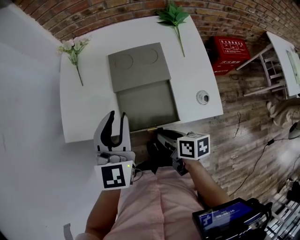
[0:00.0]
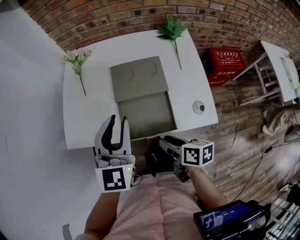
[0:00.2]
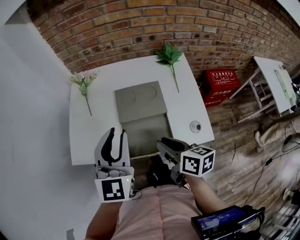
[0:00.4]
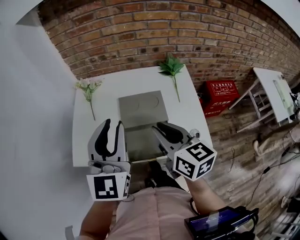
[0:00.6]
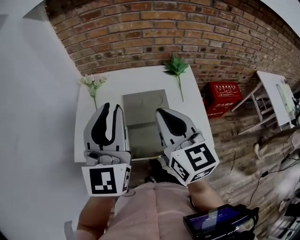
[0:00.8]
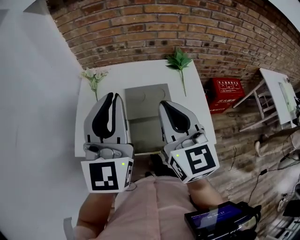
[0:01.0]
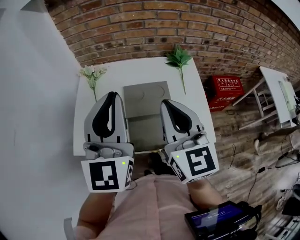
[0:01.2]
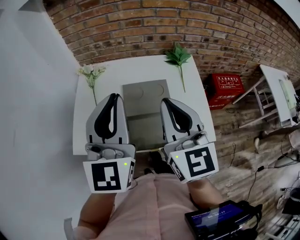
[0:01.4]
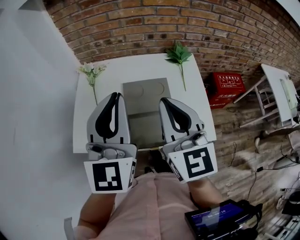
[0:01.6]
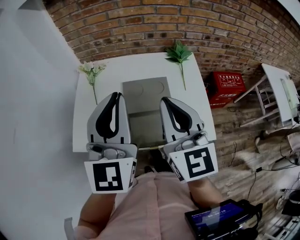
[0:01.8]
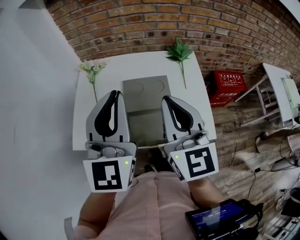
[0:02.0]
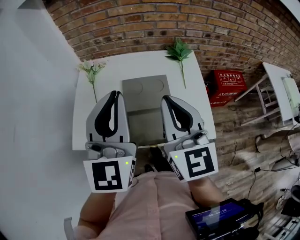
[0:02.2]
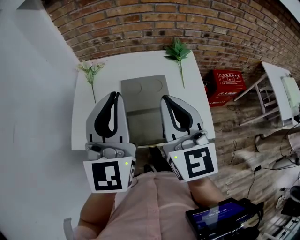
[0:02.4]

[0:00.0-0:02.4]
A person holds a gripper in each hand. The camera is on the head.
0:00.0 to 0:01.2: The left gripper is displaced upward by approximately 20 cm, changes its angle by about 20 degrees, and closes, while the right gripper heads upward, covering approximately 35 cm, tilts its fingers about 40 degrees upward, and closes up.
0:01.2 to 0:02.4: There are only small adjustments of the grippers.

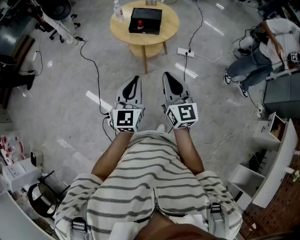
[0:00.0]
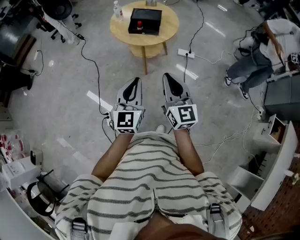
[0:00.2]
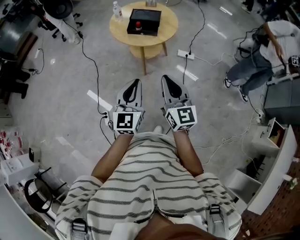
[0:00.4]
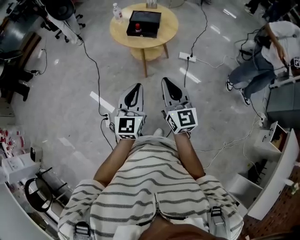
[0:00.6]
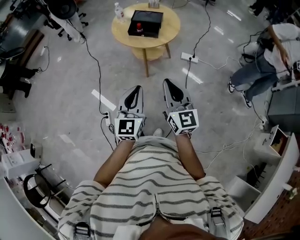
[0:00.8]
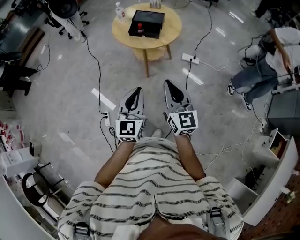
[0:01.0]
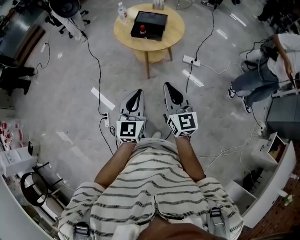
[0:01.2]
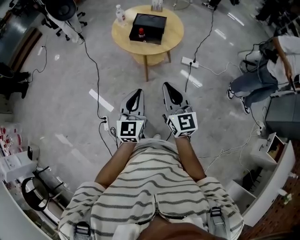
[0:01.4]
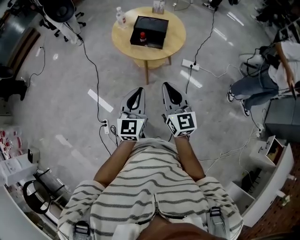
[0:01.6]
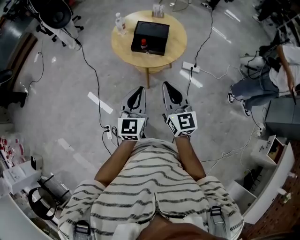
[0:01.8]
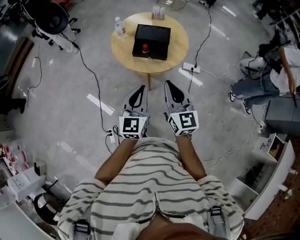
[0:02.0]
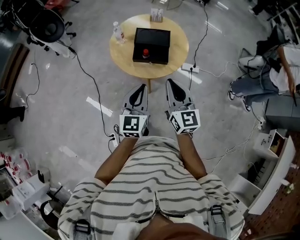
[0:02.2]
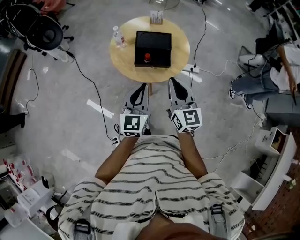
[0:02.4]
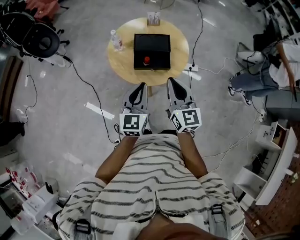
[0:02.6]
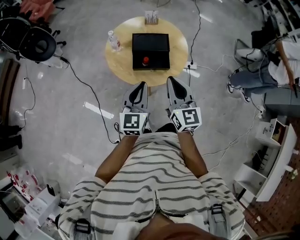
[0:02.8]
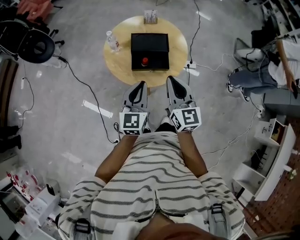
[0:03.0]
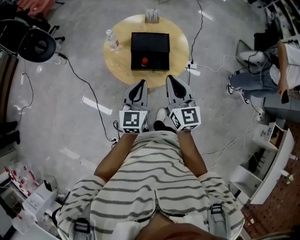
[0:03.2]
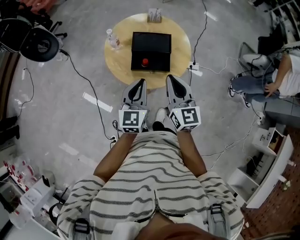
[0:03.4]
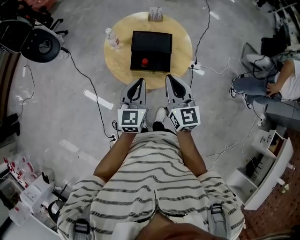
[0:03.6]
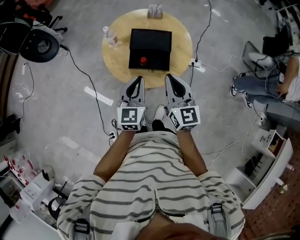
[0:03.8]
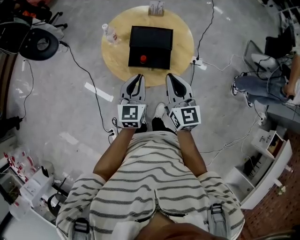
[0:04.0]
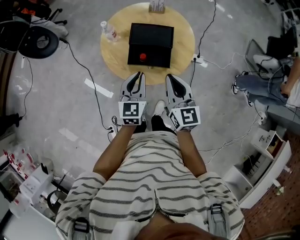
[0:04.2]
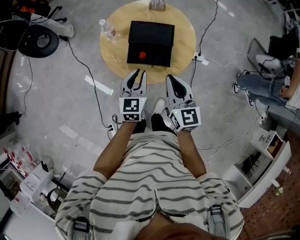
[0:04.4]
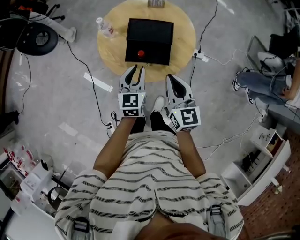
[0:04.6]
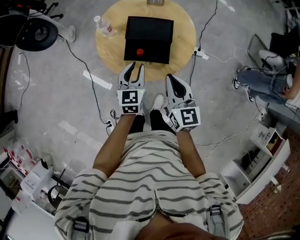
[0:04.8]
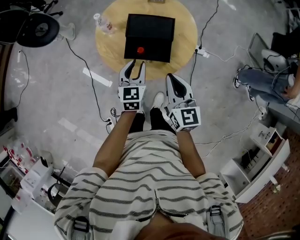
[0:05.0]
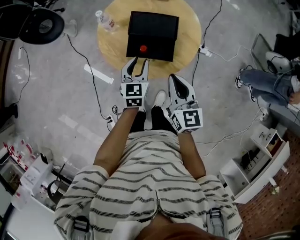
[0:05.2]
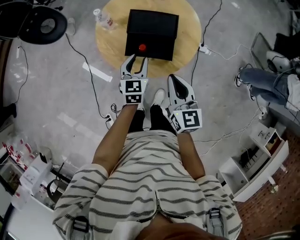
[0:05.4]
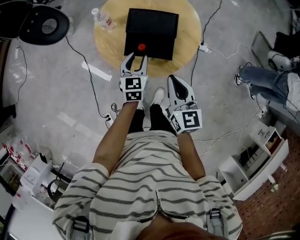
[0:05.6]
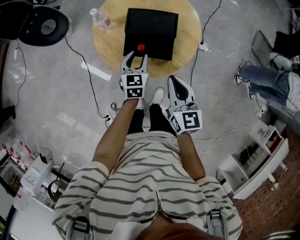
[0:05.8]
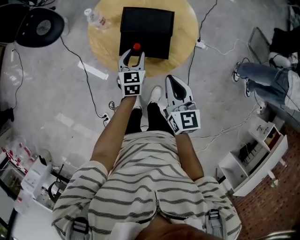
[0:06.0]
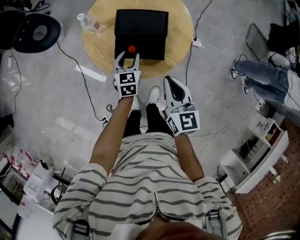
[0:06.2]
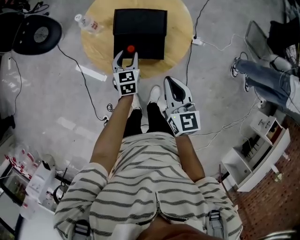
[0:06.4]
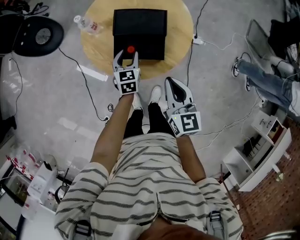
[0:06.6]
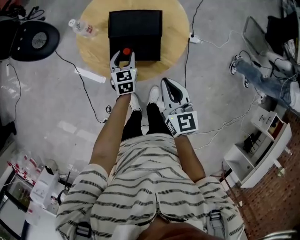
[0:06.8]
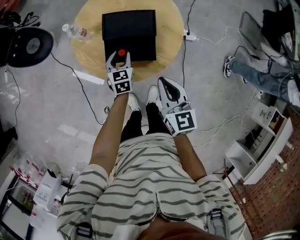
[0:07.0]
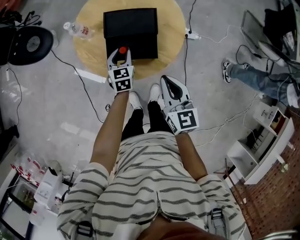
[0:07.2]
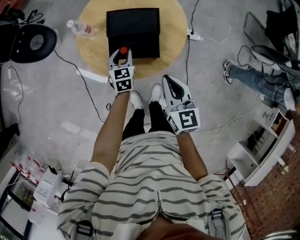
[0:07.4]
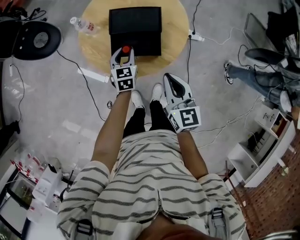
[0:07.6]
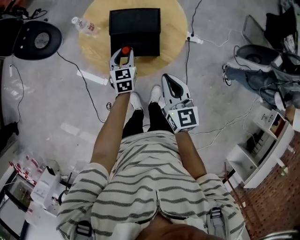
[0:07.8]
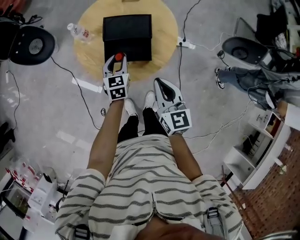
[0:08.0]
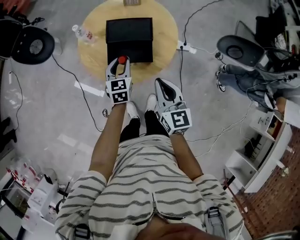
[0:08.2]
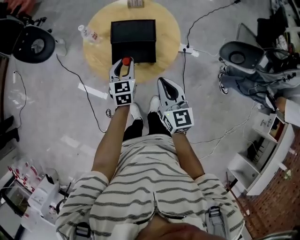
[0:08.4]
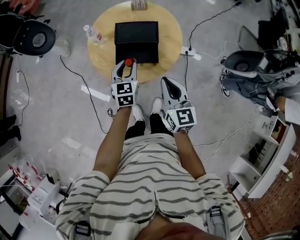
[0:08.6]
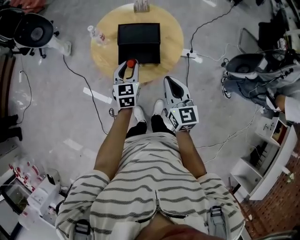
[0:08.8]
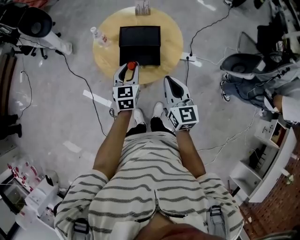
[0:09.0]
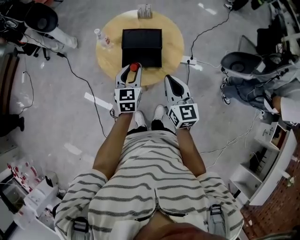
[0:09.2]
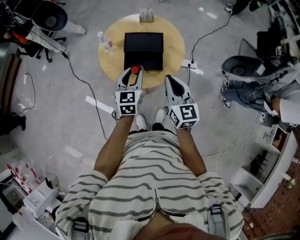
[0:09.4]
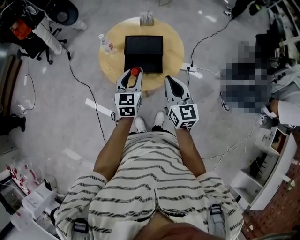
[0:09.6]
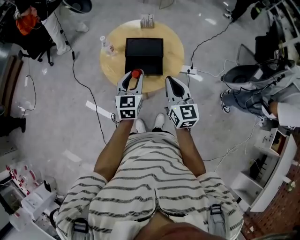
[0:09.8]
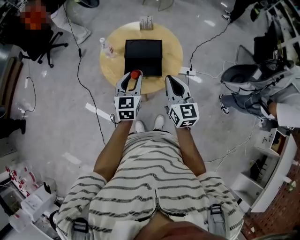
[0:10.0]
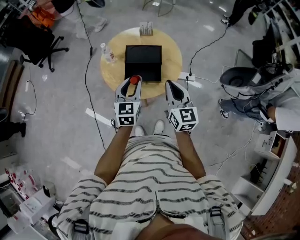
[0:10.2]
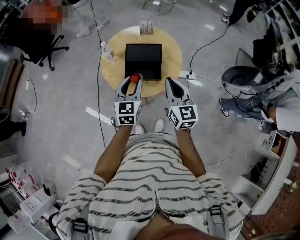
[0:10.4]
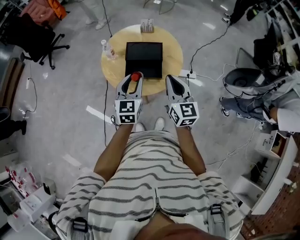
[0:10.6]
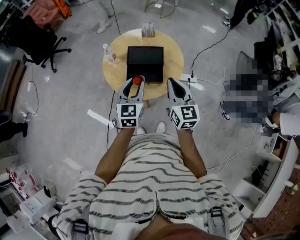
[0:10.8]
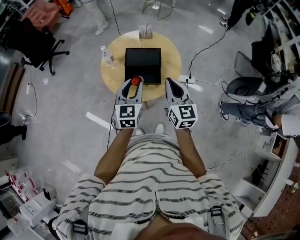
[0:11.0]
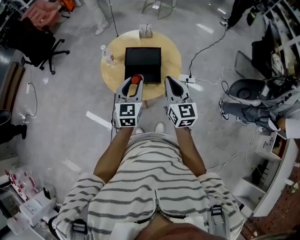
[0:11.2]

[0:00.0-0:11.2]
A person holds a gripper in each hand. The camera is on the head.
0:00.0 to 0:01.6: The right gripper is displaced forward by about 10 cm. The left gripper moves forward and to the right, approximately 10 cm.
0:01.6 to 0:03.2: Both grippers travel together forward, roughly 25 cm.
0:03.2 to 0:04.8: The right gripper heads downward, covering roughly 10 cm. The left gripper travels downward and forward by some 15 cm.
0:04.8 to 0:06.4: The left gripper moves downward and forward, approximately 15 cm.
0:06.4 to 0:08.0: The grippers move only a little.
0:08.0 to 0:09.6: The left gripper heads upward and backward, covering roughly 15 cm, while the right gripper travels upward by roughly 10 cm.
0:09.6 to 0:11.2: The left gripper shifts by some 5 cm.

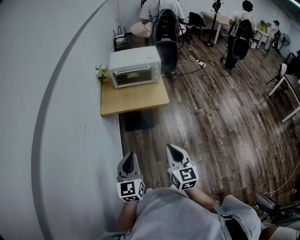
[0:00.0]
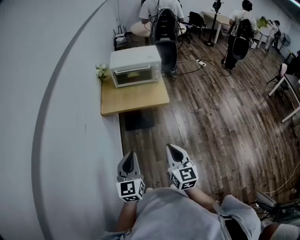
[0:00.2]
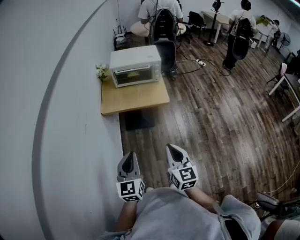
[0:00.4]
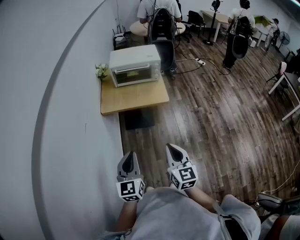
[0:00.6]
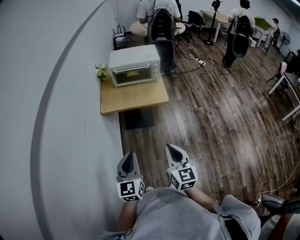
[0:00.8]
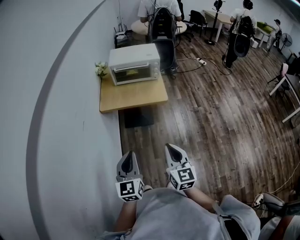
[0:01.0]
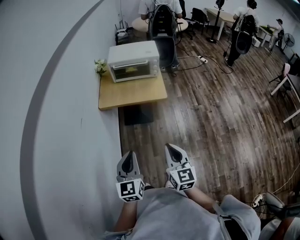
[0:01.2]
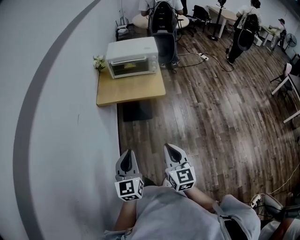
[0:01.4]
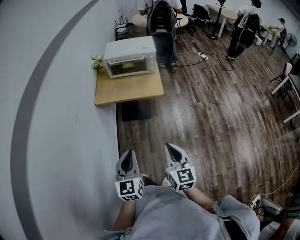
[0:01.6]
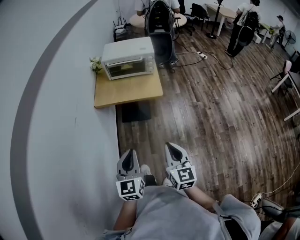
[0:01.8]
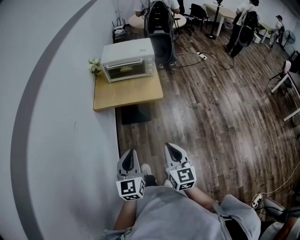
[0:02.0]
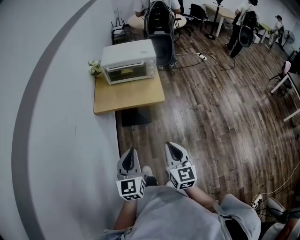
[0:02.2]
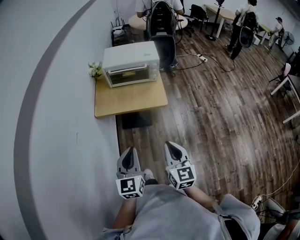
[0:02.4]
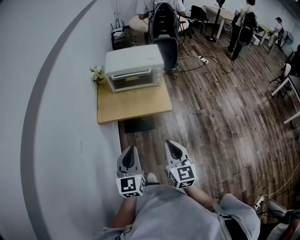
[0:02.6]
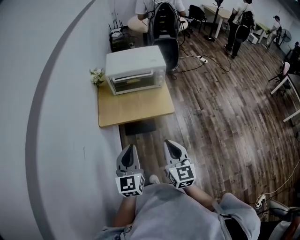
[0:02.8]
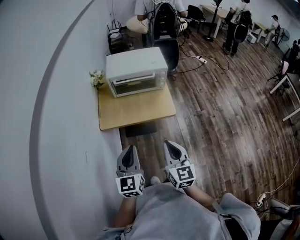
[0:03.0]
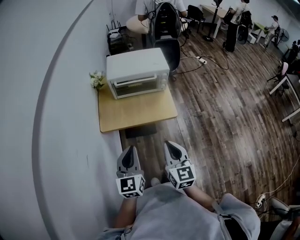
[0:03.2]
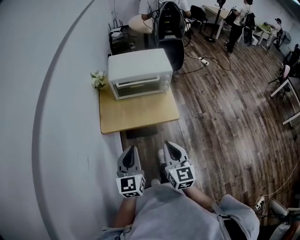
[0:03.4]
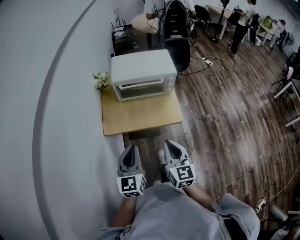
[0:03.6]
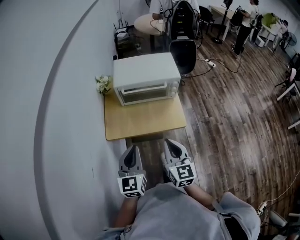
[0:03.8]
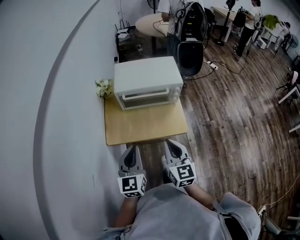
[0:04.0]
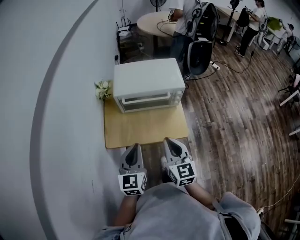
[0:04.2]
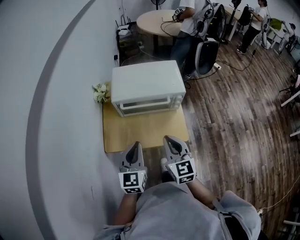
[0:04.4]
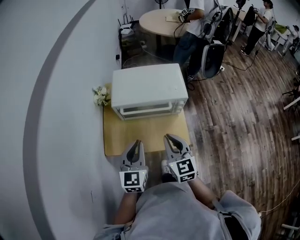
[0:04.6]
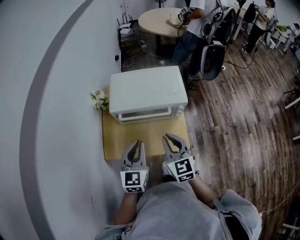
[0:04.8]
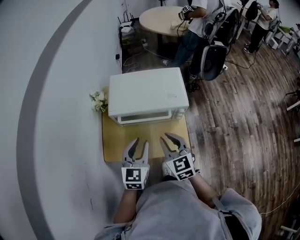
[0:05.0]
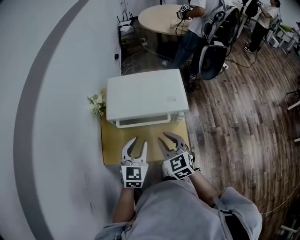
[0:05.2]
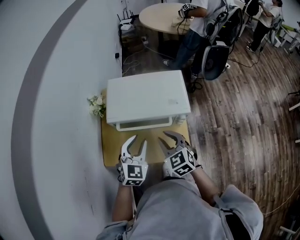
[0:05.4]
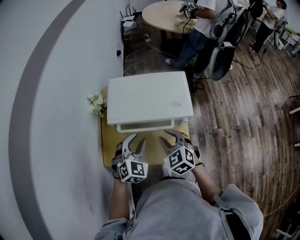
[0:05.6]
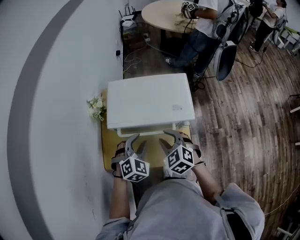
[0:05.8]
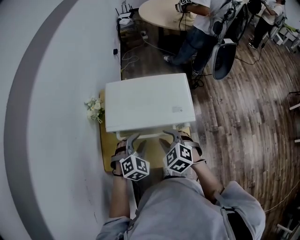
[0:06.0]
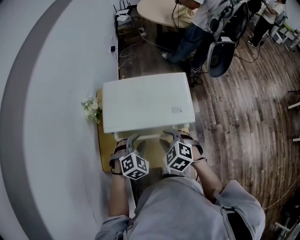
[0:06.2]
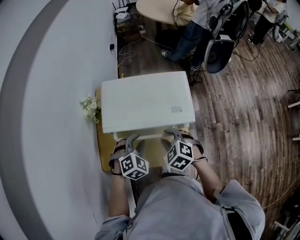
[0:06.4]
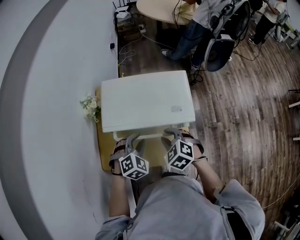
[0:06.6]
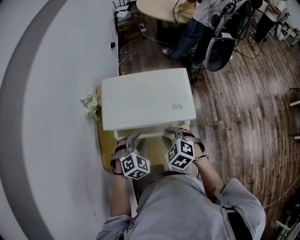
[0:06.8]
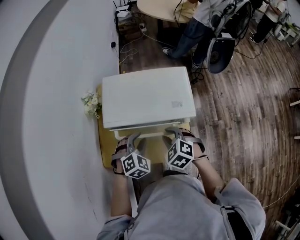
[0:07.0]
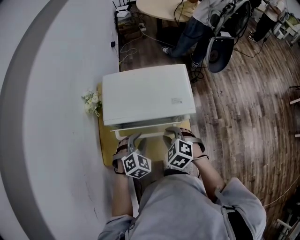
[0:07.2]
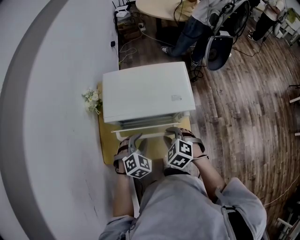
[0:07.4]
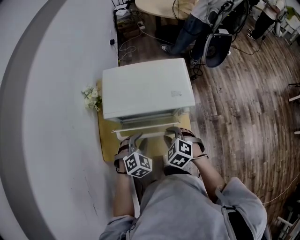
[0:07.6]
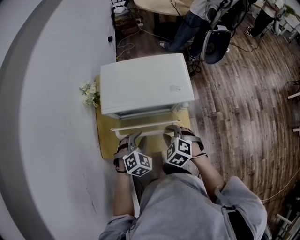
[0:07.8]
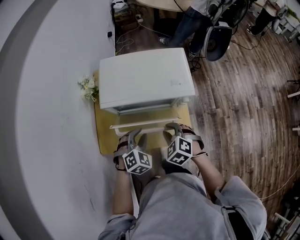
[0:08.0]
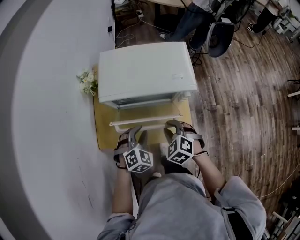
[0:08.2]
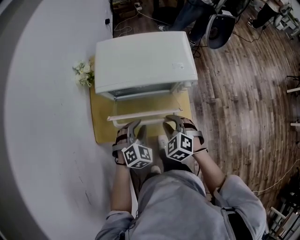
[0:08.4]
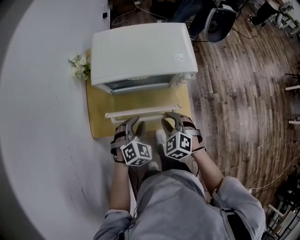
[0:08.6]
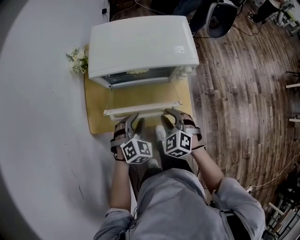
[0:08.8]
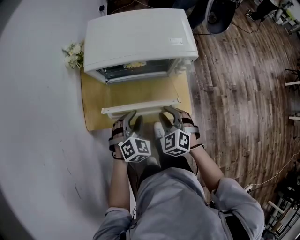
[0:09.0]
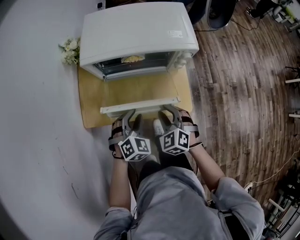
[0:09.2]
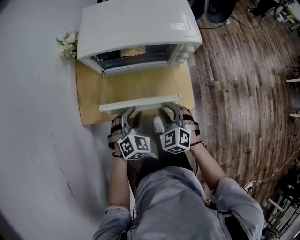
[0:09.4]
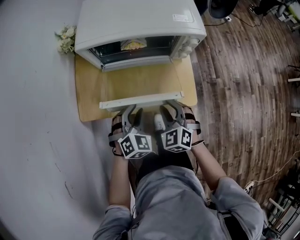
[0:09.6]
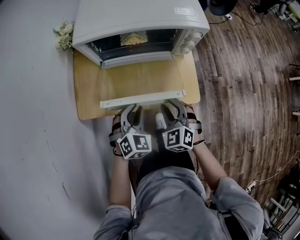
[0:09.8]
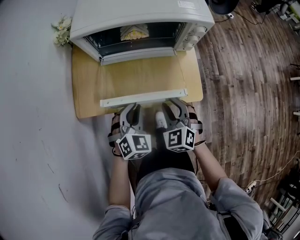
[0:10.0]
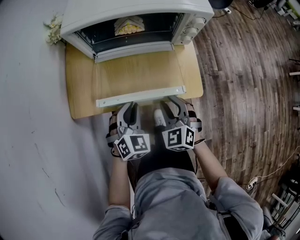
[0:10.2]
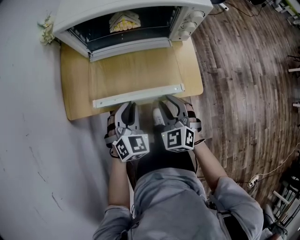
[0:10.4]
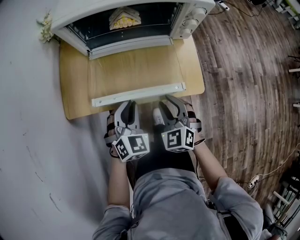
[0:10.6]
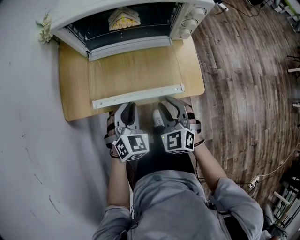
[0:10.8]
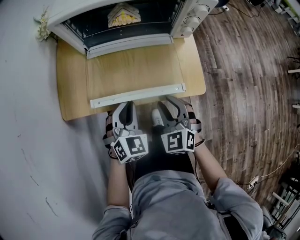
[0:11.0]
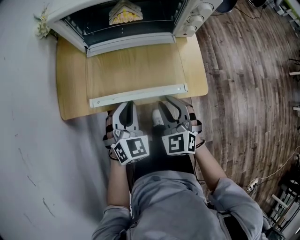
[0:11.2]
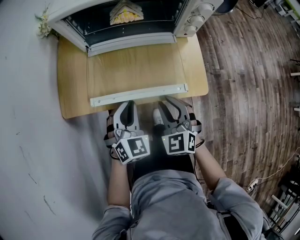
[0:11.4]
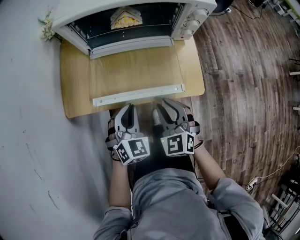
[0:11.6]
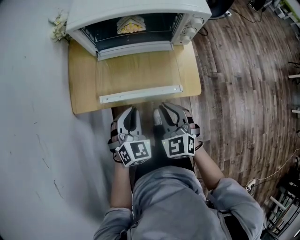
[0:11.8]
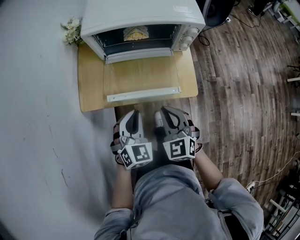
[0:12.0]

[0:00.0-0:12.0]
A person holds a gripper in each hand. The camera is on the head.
0:00.0 to 0:01.6: The two grippers go some 10 cm to the right.
0:01.6 to 0:03.0: The two grippers go some 20 cm forward.
0:03.0 to 0:04.4: Both grippers move forward, some 25 cm.
0:04.4 to 0:06.0: Both grippers move forward and downward, roughly 20 cm. The right gripper tilts its fingers some 40 degrees downward, and opens its fingers, while the left gripper points its fingers approximately 30 degrees further downward, and opens its fingers.
0:06.0 to 0:07.6: The grippers both shift backward by about 5 cm.
0:07.6 to 0:09.0: The grippers both shift backward and downward by some 10 cm.
0:09.0 to 0:10.4: The grippers both shift downward by some 10 cm.
0:10.4 to 0:12.0: Both grippers travel together upward, some 10 cm. The right gripper closes up.
